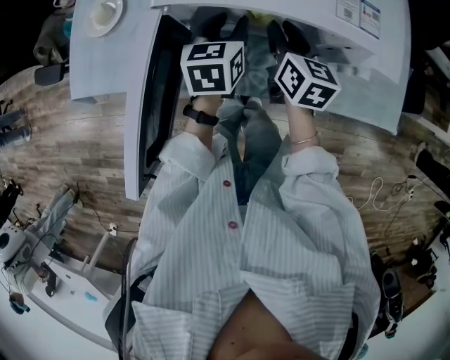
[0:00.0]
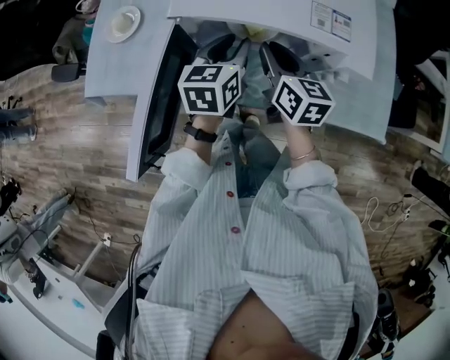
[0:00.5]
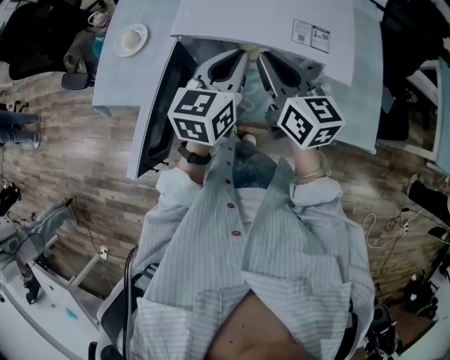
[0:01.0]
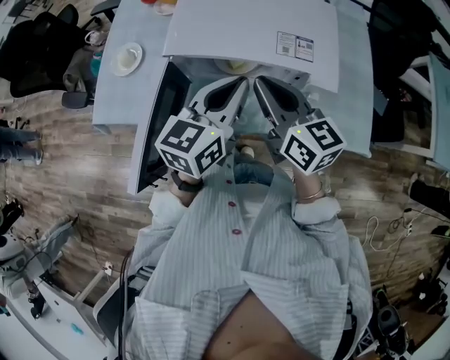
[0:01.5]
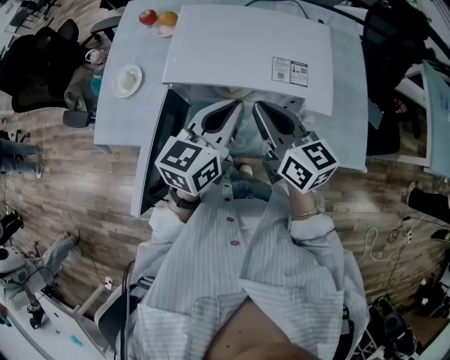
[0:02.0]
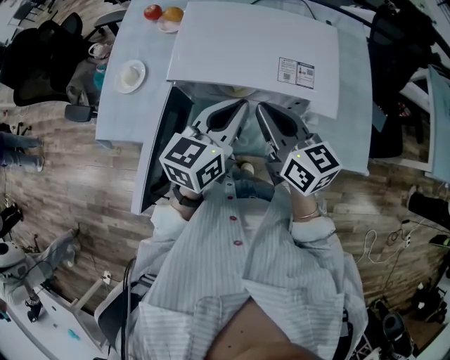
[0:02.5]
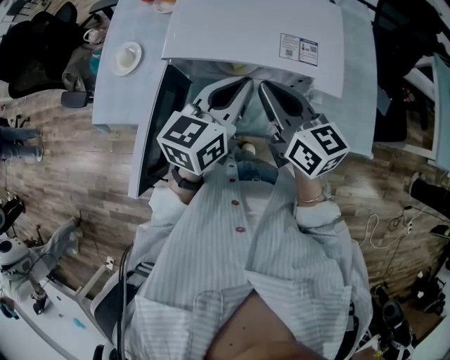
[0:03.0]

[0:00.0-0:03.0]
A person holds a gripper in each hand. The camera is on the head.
0:00.0 to 0:01.5: The two grippers go approximately 25 cm upward and backward. The left gripper turns by roughly 30 degrees, and closes its fingers, while the right gripper swivels some 30 degrees, and closes its fingers.
0:01.5 to 0:03.0: There are only small adjustments of the grippers.

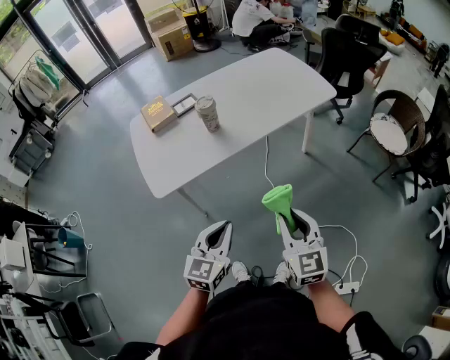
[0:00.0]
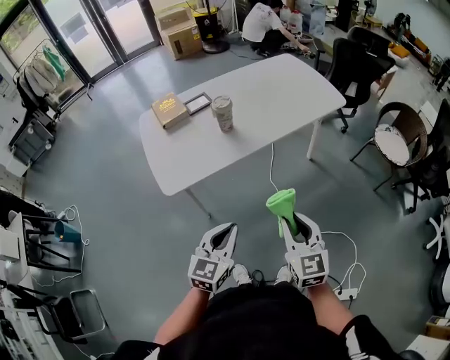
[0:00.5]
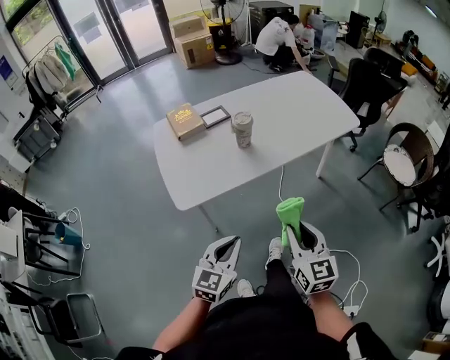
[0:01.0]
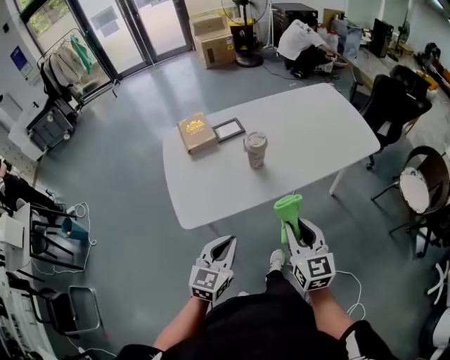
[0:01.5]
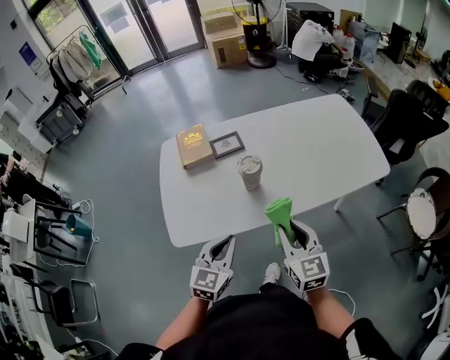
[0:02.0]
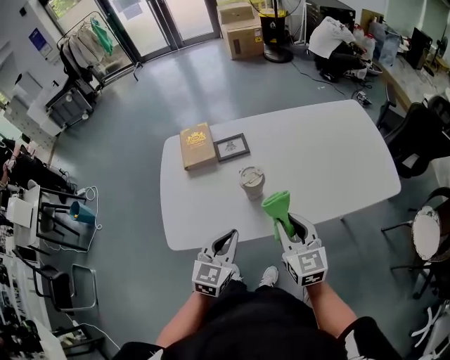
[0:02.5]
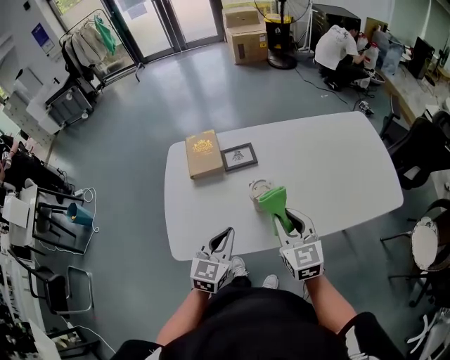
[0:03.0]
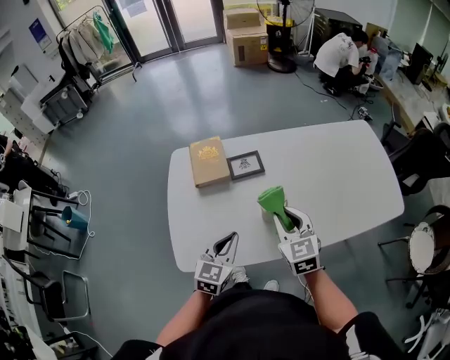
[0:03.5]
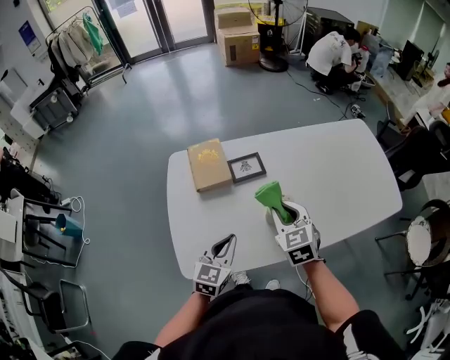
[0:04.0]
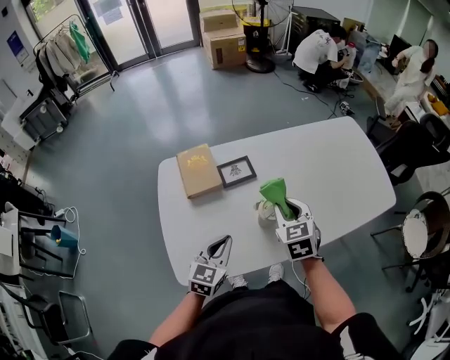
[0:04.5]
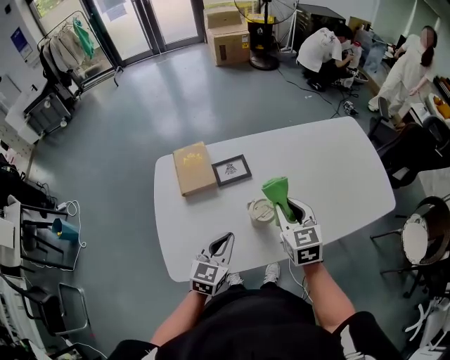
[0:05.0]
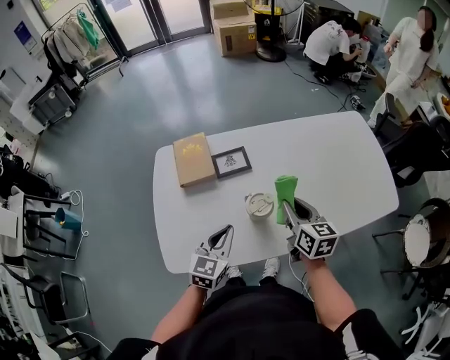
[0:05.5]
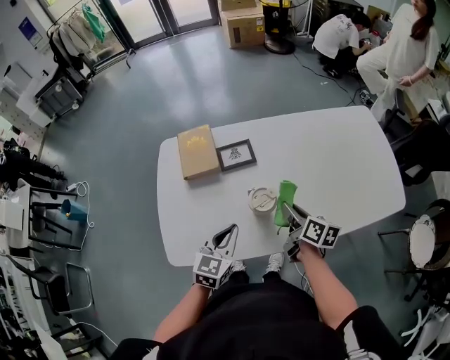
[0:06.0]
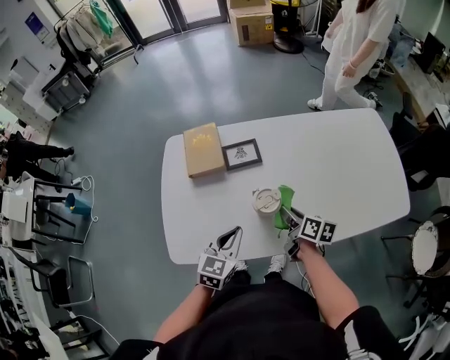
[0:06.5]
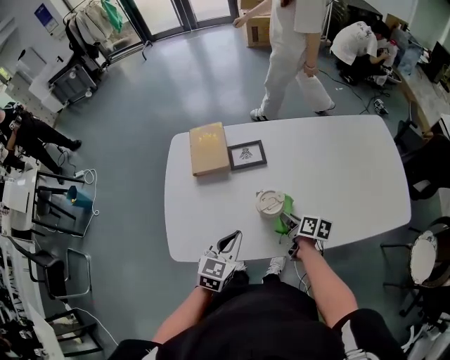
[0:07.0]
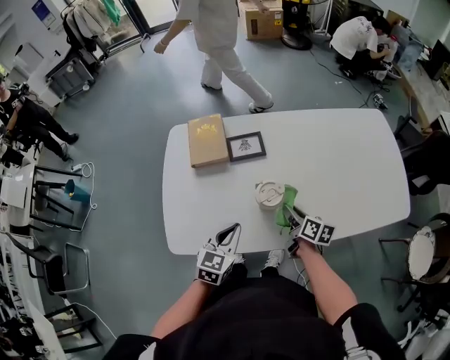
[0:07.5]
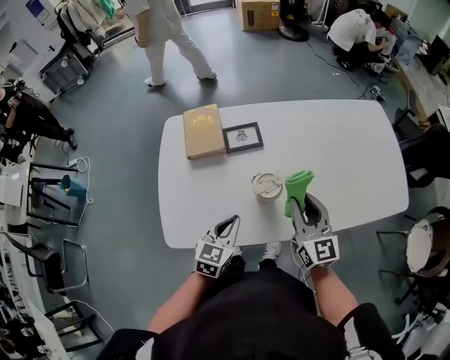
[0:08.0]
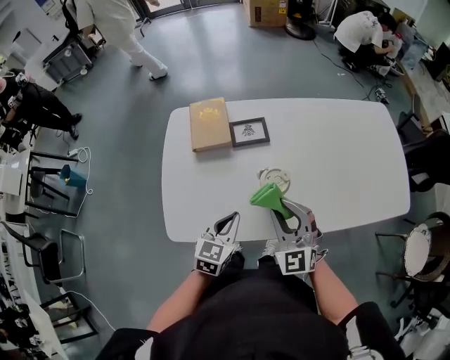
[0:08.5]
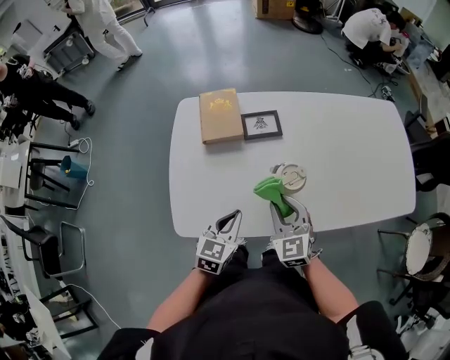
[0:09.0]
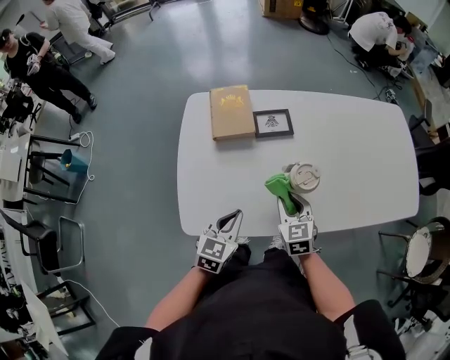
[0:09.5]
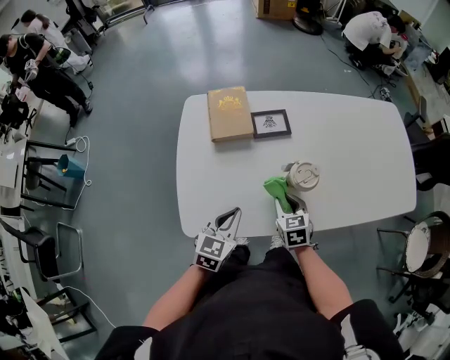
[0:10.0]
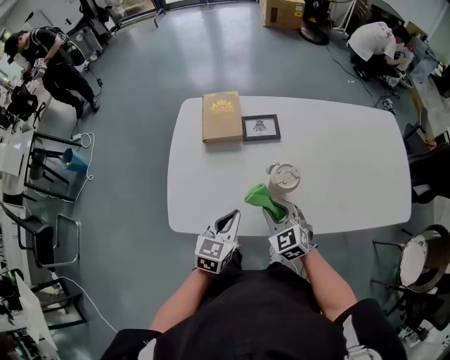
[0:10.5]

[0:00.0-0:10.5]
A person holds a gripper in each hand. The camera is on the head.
0:00.0 to 0:02.0: The grippers both shift forward by roughly 25 cm.
0:02.0 to 0:04.0: Both grippers move forward and to the left, some 20 cm. The right gripper rotates some 20 degrees.
0:04.0 to 0:06.5: The left gripper moves to the right, roughly 10 cm, while the right gripper moves downward and to the right, roughly 15 cm, and twists roughly 60 degrees clockwise, seen from behind.
0:06.5 to 0:08.5: The right gripper travels upward, to the left and backward by some 15 cm, and twists approximately 80 degrees counterclockwise, seen from behind.
0:08.5 to 0:10.5: The right gripper goes approximately 10 cm downward, and rotates some 30 degrees. Meanwhile the left gripper travels to the left and back again, some 10 cm each way.

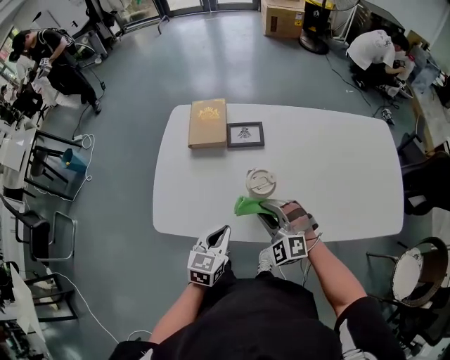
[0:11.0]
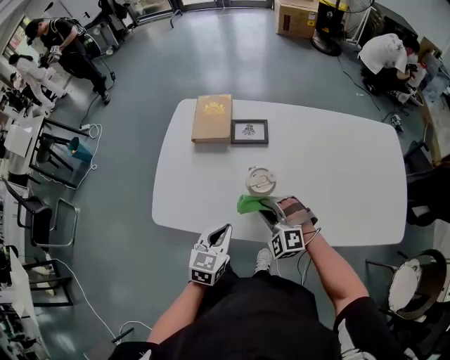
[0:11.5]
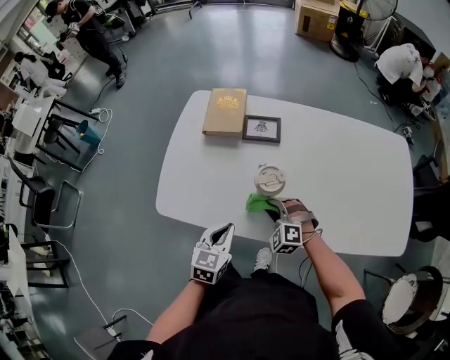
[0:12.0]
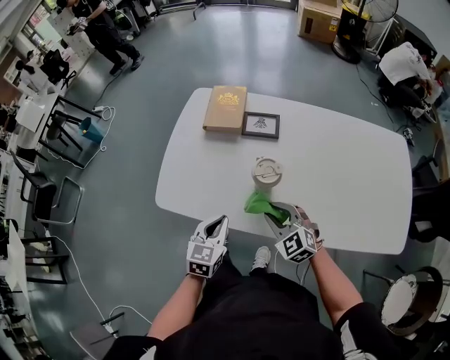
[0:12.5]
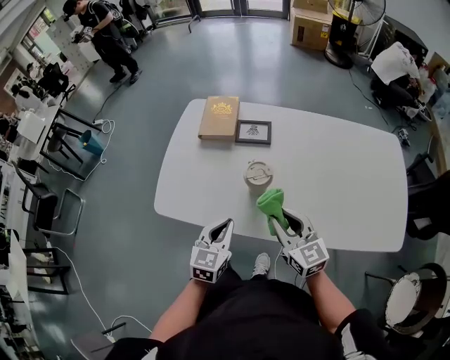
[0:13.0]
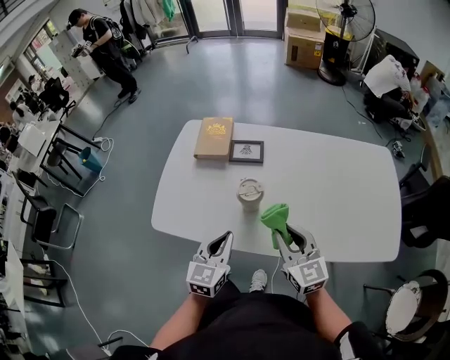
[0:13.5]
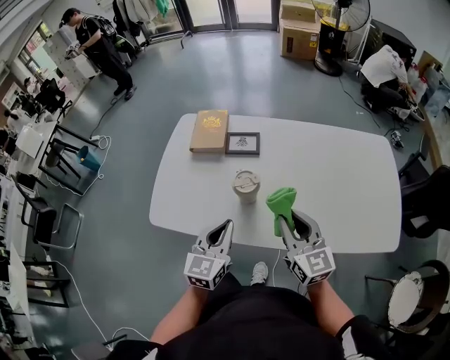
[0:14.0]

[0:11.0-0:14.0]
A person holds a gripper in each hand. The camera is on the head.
0:11.0 to 0:12.5: The right gripper goes downward and returns, roughly 10 cm each way, and changes its angle by approximately 30 degrees.
0:12.5 to 0:14.0: Both grippers travel together upward and to the right, approximately 15 cm. The right gripper rotates some 50 degrees.

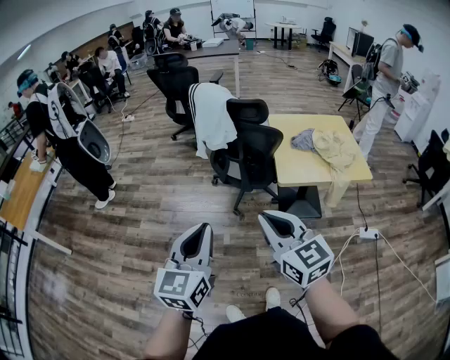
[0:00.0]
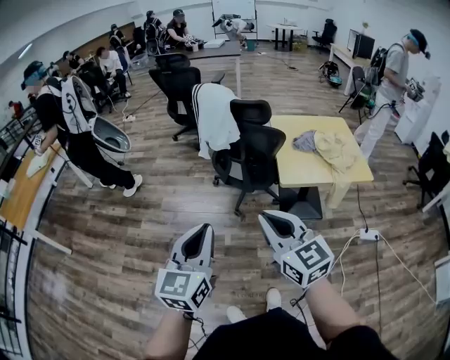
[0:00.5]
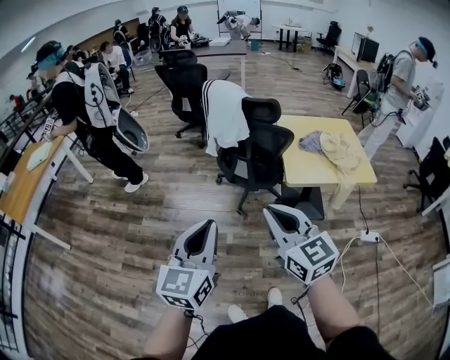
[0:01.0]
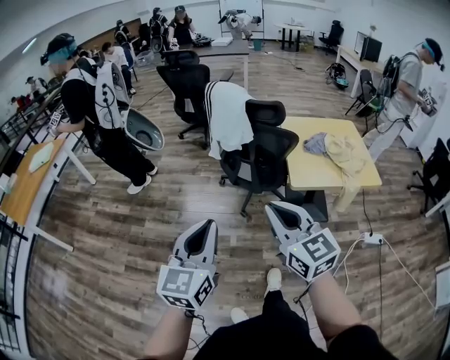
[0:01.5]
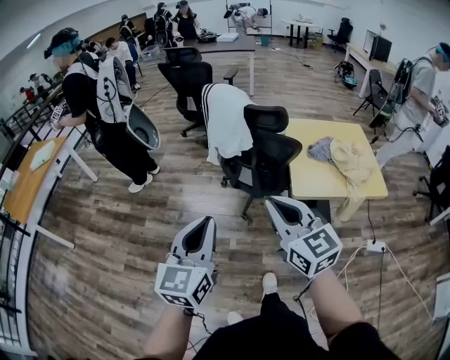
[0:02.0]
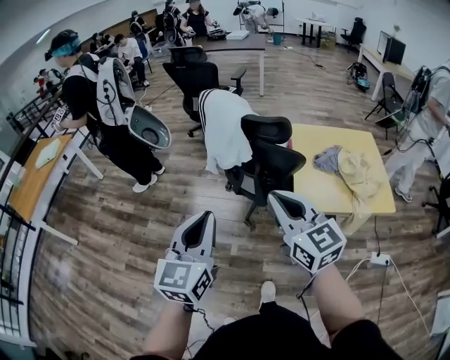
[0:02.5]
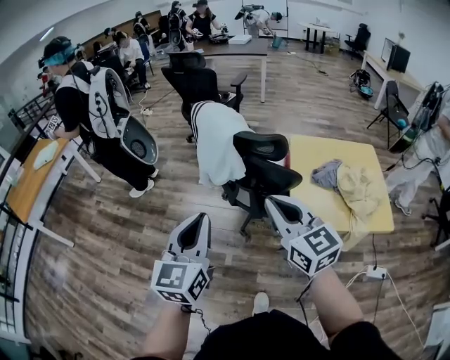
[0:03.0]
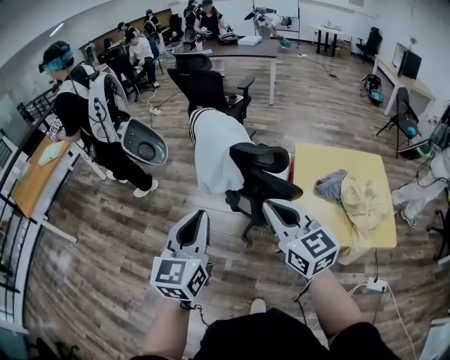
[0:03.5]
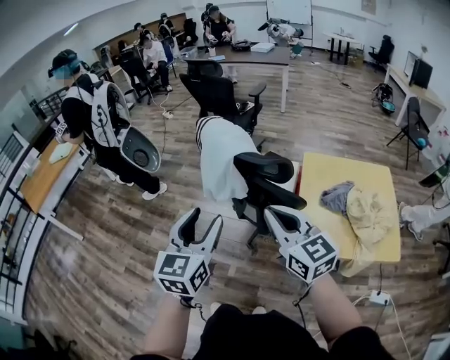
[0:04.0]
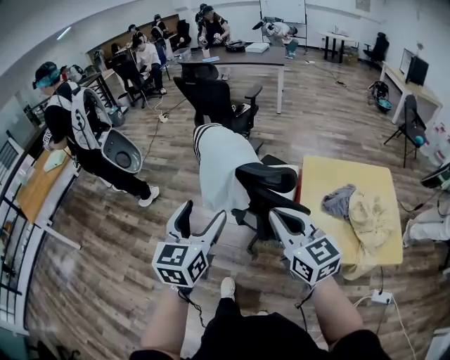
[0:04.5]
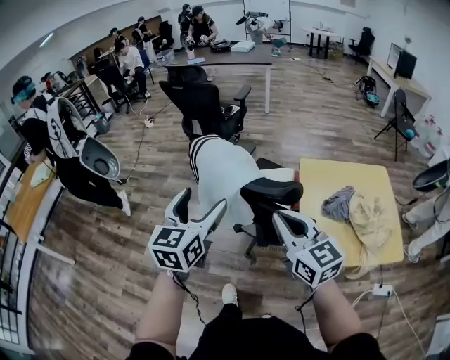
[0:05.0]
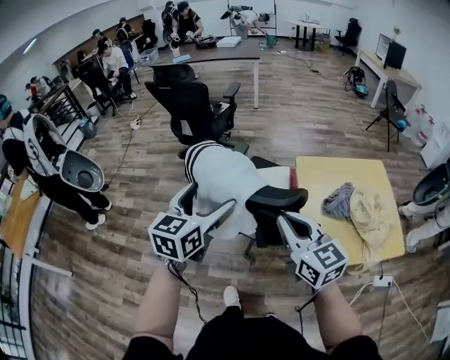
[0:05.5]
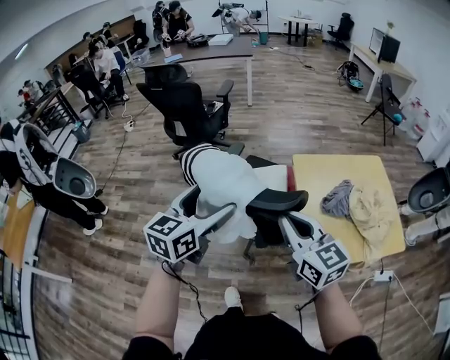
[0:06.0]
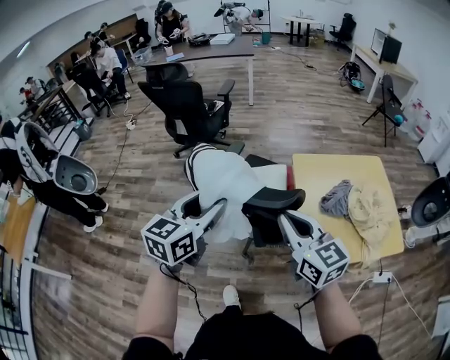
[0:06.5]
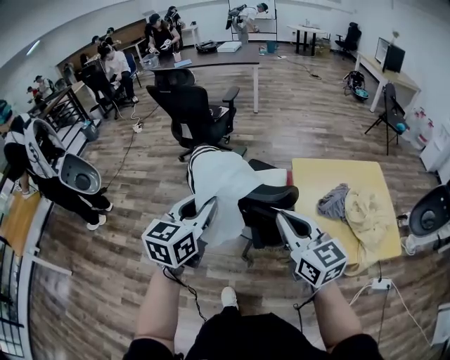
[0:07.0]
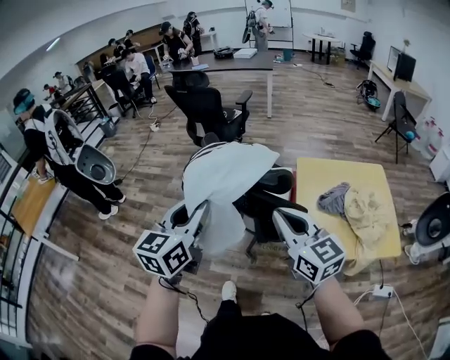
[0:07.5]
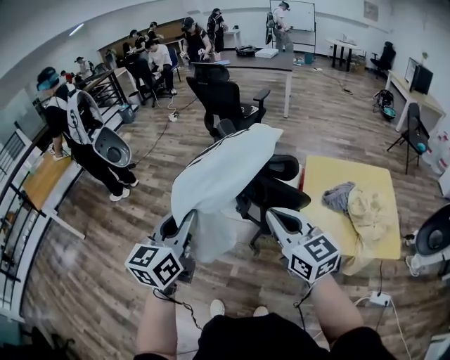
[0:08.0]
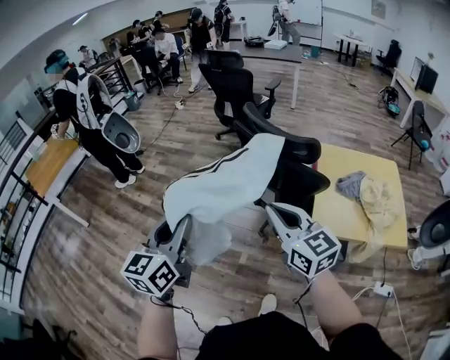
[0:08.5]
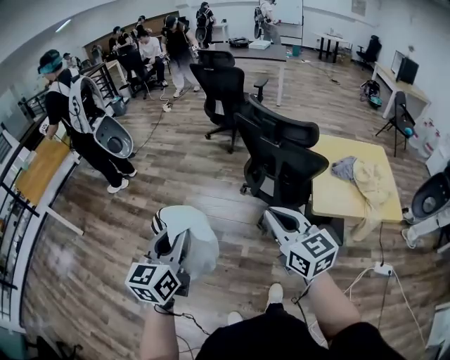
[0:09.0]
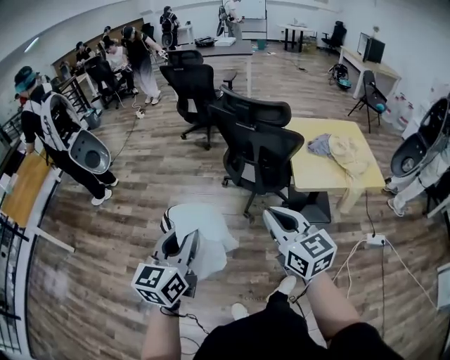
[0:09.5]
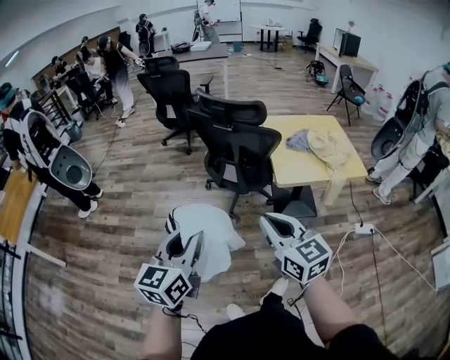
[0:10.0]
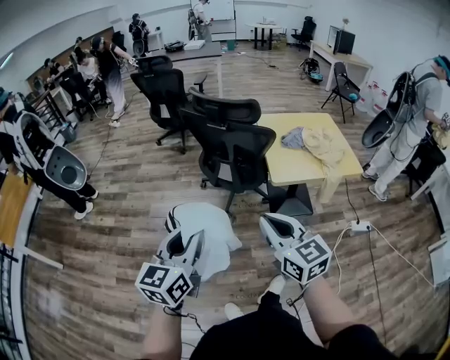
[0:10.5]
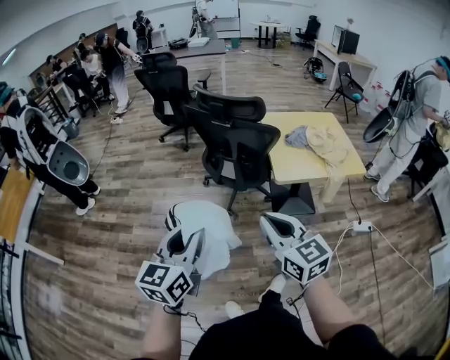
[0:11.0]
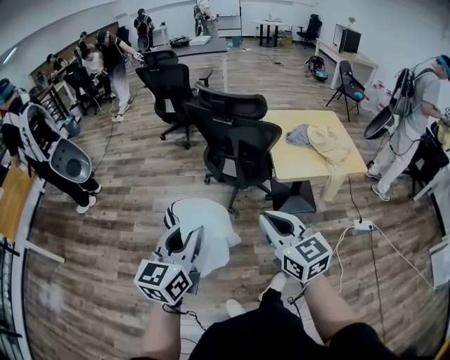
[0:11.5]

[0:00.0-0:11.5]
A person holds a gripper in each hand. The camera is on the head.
0:00.0 to 0:02.0: The grippers both shift forward by approximately 10 cm.
0:02.0 to 0:04.0: Both grippers travel together forward and to the right, approximately 25 cm. The left gripper opens its fingers.
0:04.0 to 0:06.0: The right gripper shifts approximately 15 cm forward; the left gripper goes about 25 cm forward, changes its angle by some 30 degrees, and opens its fingers.
0:06.0 to 0:07.5: Both grippers move backward, approximately 15 cm. The left gripper closes up.
0:07.5 to 0:09.5: The two grippers go roughly 35 cm backward and to the left.
0:09.5 to 0:11.5: The left gripper is displaced to the right by approximately 5 cm.
